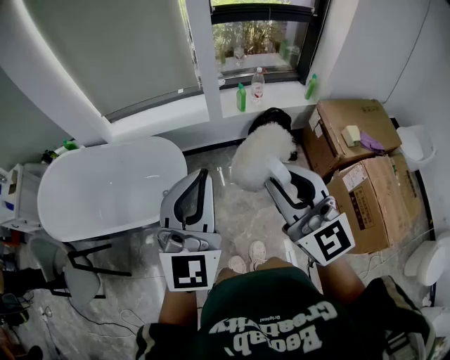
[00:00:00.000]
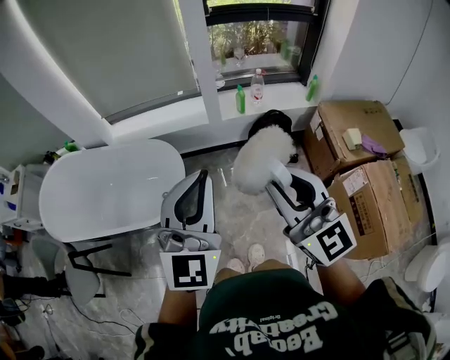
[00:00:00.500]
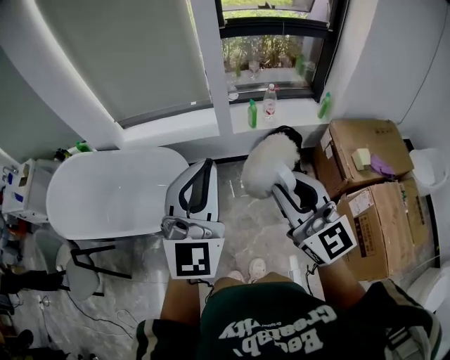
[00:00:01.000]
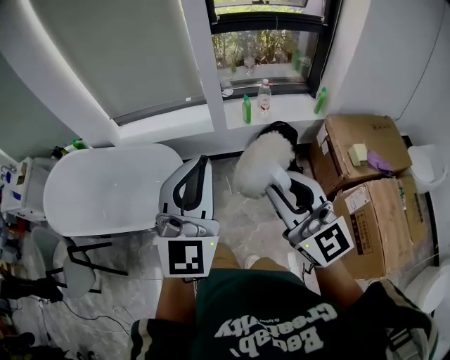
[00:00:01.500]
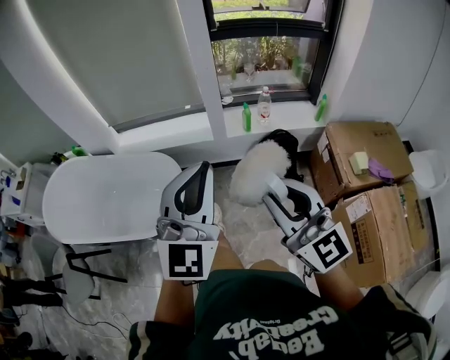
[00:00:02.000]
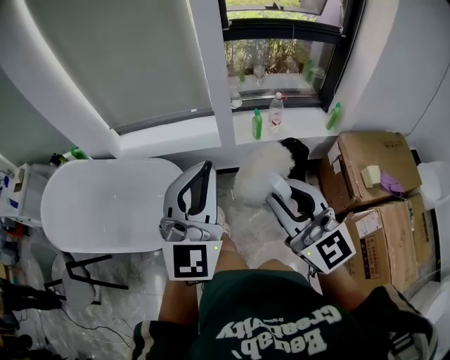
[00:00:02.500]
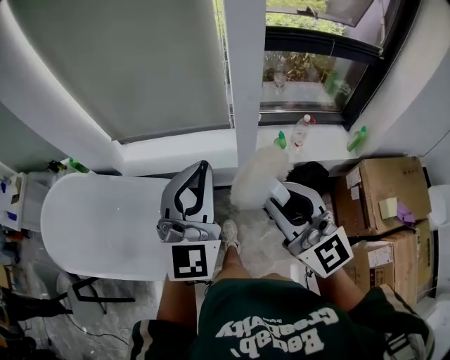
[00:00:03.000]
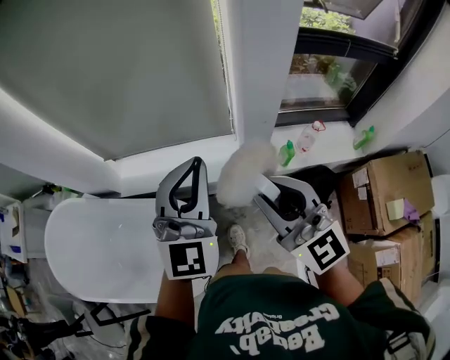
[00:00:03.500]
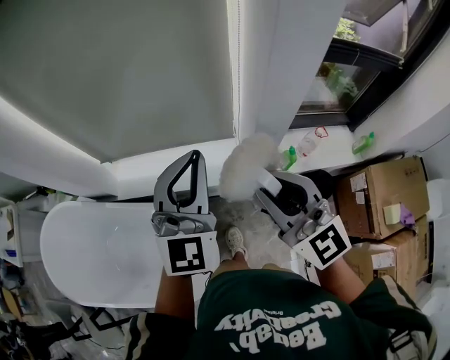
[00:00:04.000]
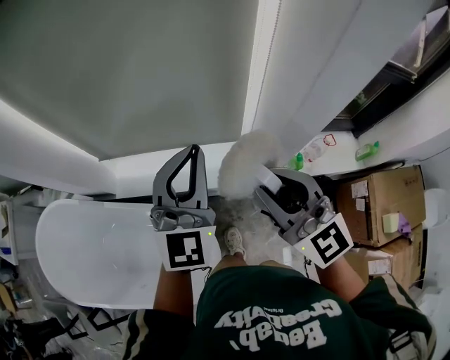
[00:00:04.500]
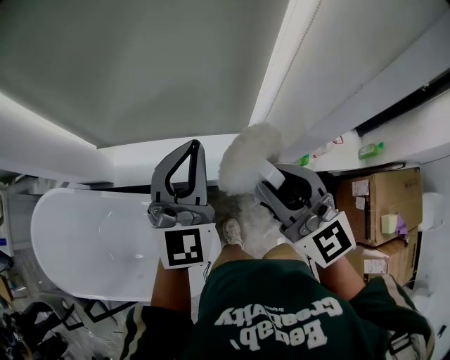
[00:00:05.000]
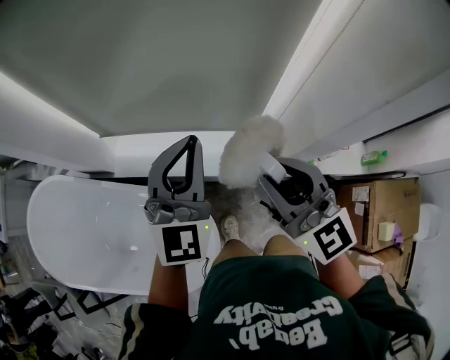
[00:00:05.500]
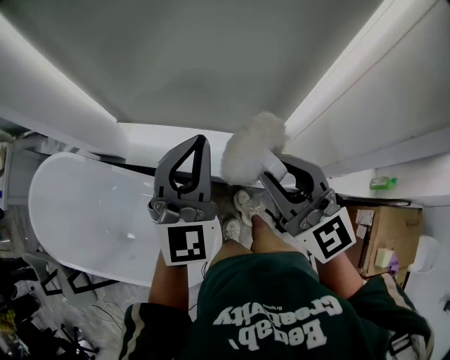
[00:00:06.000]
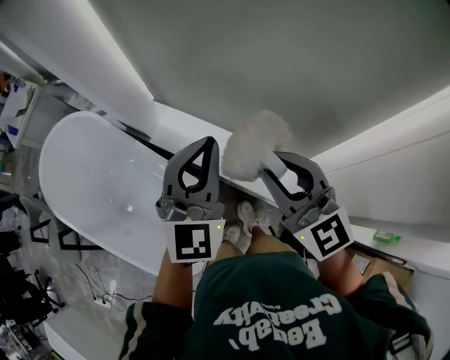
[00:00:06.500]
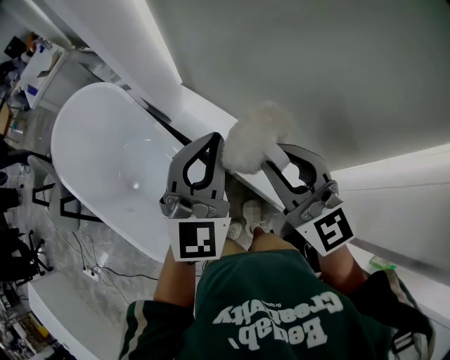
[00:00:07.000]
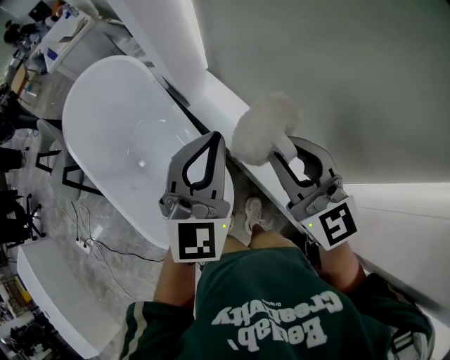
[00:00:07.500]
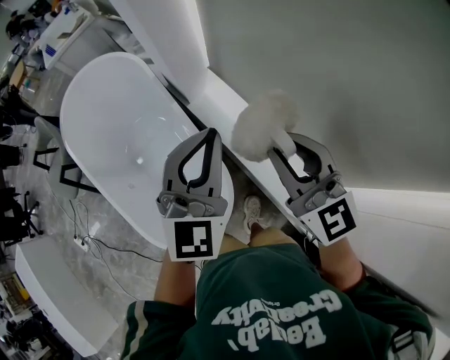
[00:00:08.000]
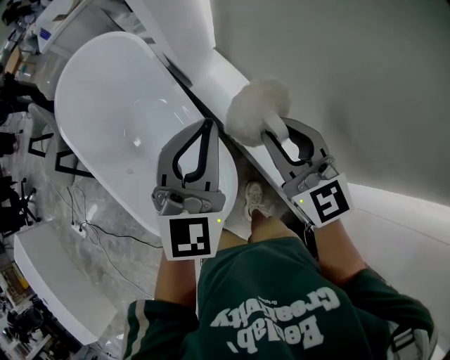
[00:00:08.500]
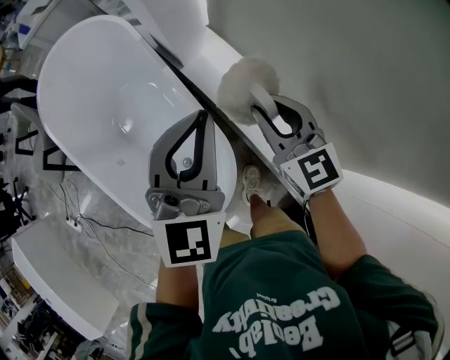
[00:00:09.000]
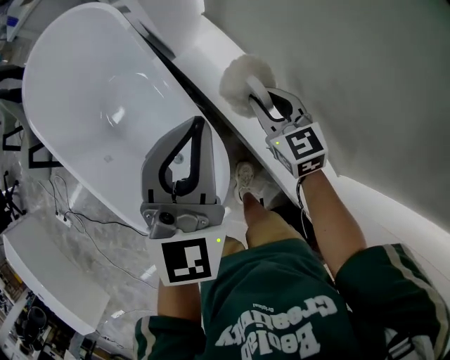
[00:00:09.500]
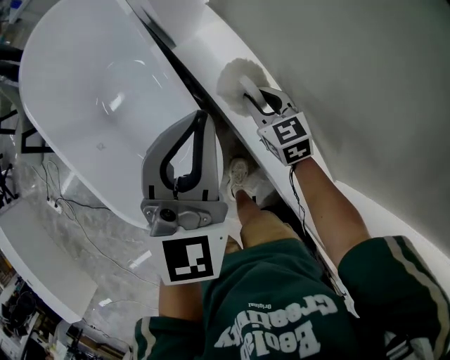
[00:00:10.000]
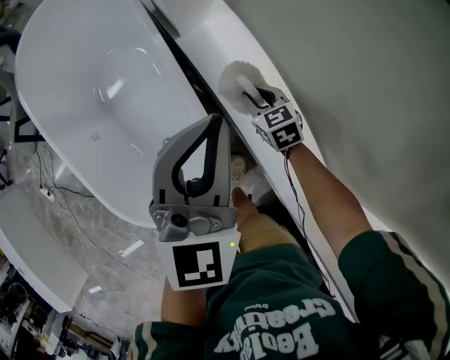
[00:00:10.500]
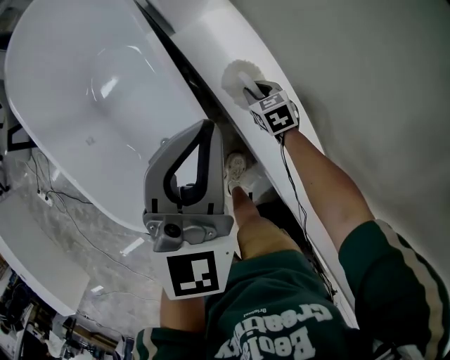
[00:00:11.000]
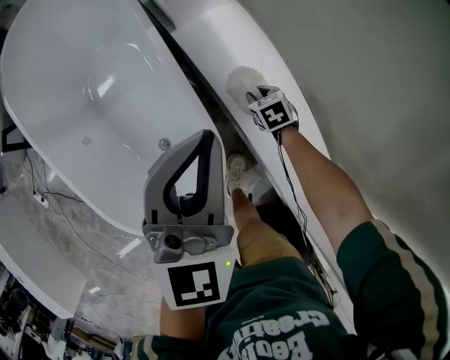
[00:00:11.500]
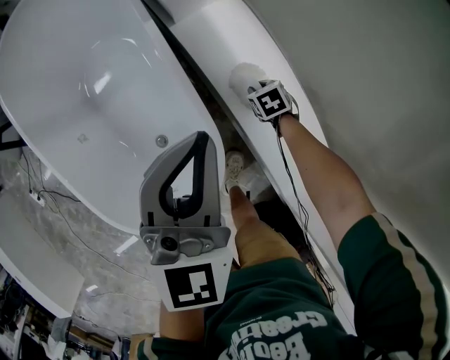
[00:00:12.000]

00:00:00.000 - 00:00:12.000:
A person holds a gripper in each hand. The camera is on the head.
00:00:00.000 - 00:00:02.000: Both grippers travel together to the right and forward, approximately 10 cm.
00:00:02.000 - 00:00:04.000: The two grippers travel together, forward, roughly 50 cm.
00:00:04.000 - 00:00:06.000: Both grippers travel together forward and to the left, about 15 cm.
00:00:06.000 - 00:00:08.000: The right gripper ends up some 20 cm from where it was, and turns by about 30 degrees; the left gripper moves approximately 15 cm, and rotates roughly 40 degrees.
00:00:08.000 - 00:00:10.000: The right gripper travels downward and forward by about 35 cm, and tilts its fingers about 30 degrees downward. The left gripper is displaced downward and forward by about 15 cm.
00:00:10.000 - 00:00:12.000: The right gripper goes about 25 cm downward, and tips its fingers downward by roughly 30 degrees. Meanwhile the left gripper heads downward, covering roughly 10 cm.

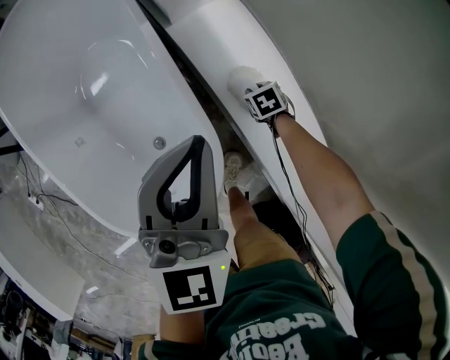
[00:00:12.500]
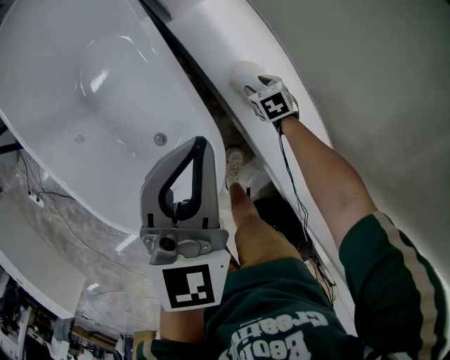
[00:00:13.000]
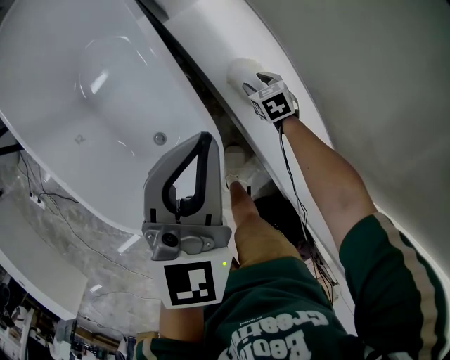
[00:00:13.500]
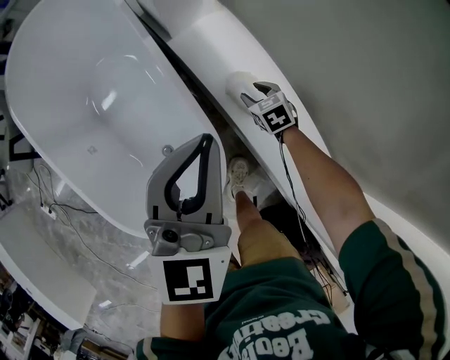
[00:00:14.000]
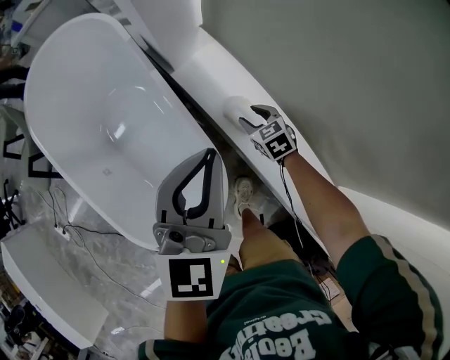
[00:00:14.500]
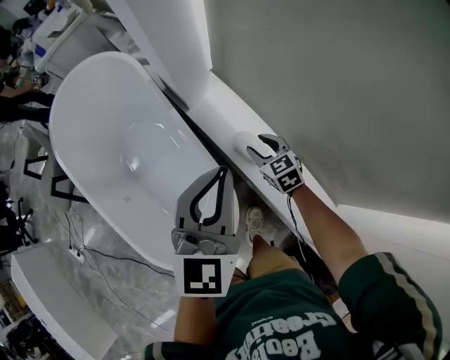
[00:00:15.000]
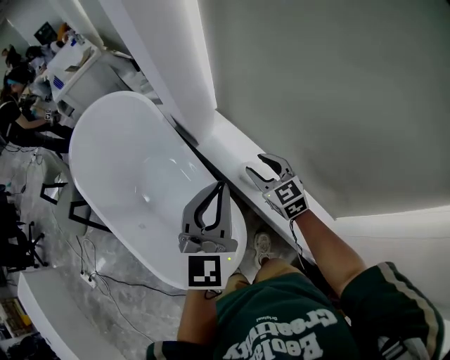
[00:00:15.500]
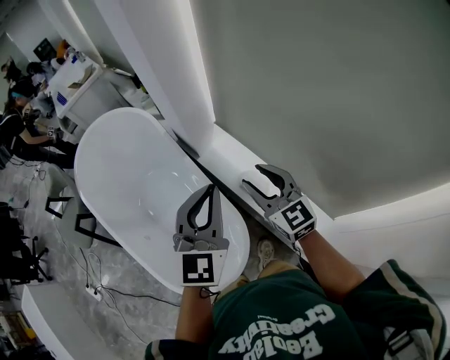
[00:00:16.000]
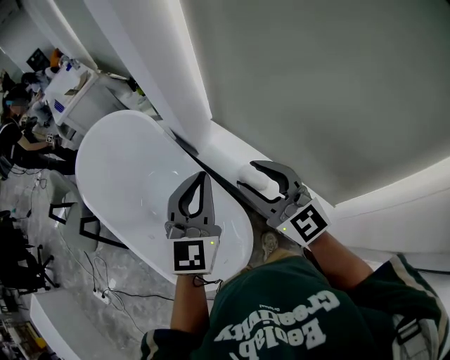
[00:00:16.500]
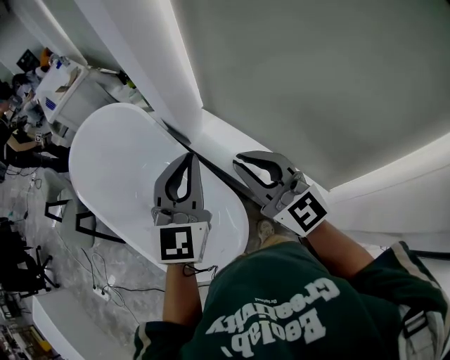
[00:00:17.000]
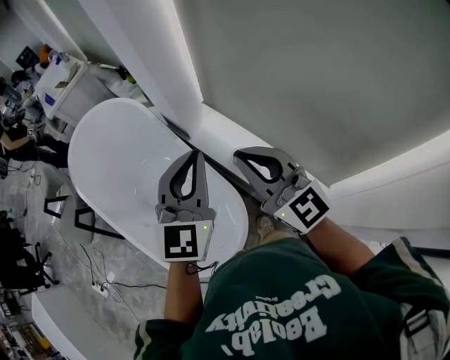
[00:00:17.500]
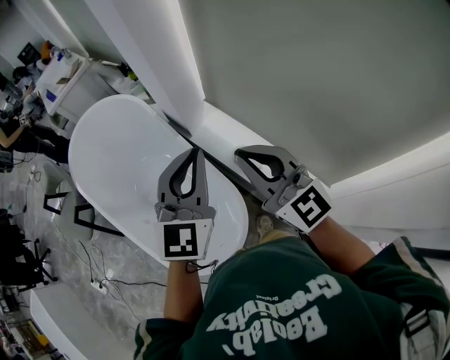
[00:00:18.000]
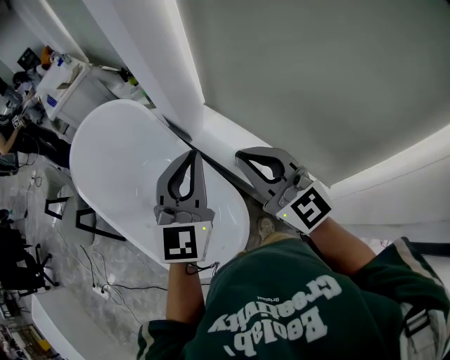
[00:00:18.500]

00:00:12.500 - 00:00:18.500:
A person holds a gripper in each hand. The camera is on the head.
00:00:12.500 - 00:00:14.500: The left gripper heads upward, covering roughly 10 cm. The right gripper shifts some 15 cm upward, turns by about 30 degrees, and opens.
00:00:14.500 - 00:00:16.500: The left gripper heads upward, covering about 15 cm, while the right gripper moves upward, approximately 50 cm, and tilts its fingers about 50 degrees upward.
00:00:16.500 - 00:00:18.500: The right gripper closes its fingers.

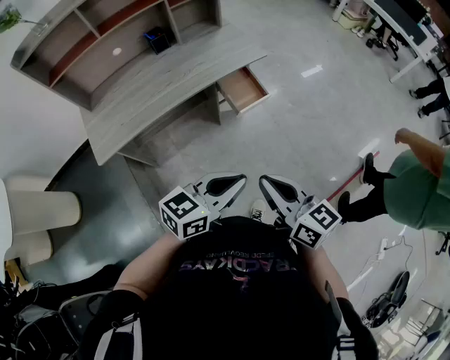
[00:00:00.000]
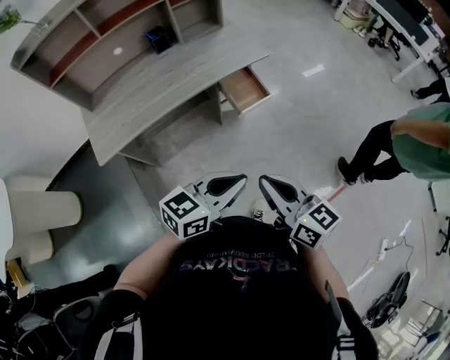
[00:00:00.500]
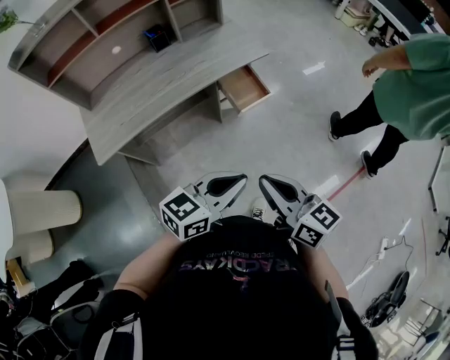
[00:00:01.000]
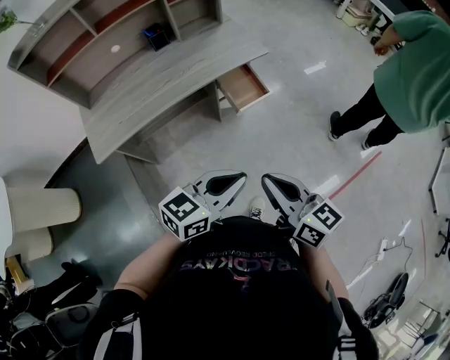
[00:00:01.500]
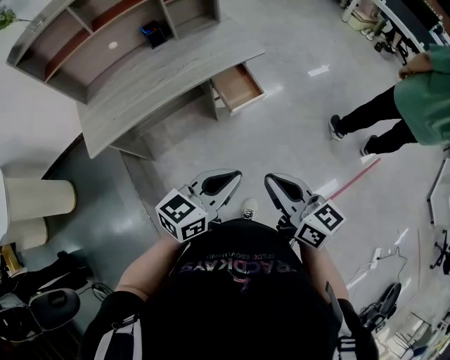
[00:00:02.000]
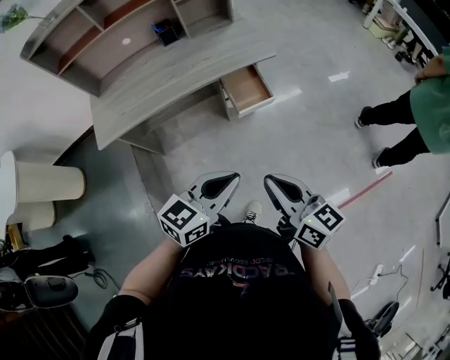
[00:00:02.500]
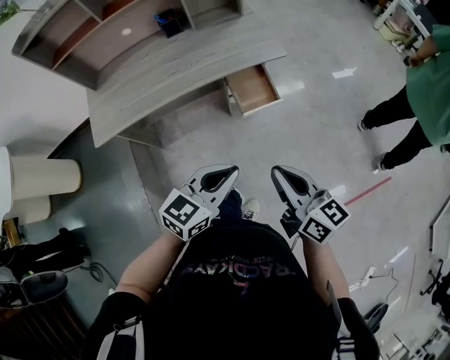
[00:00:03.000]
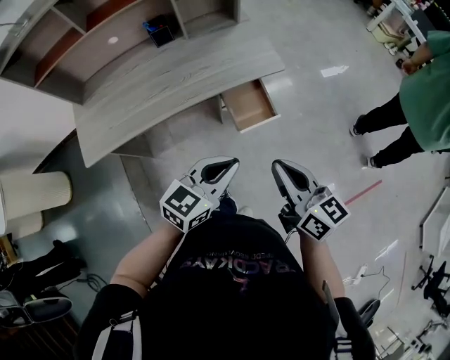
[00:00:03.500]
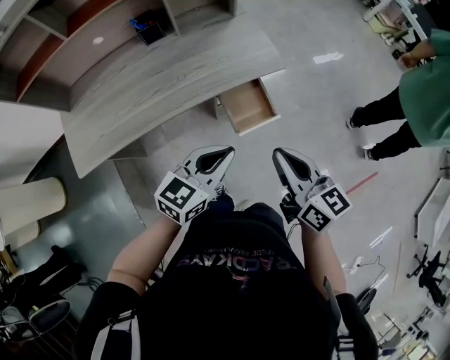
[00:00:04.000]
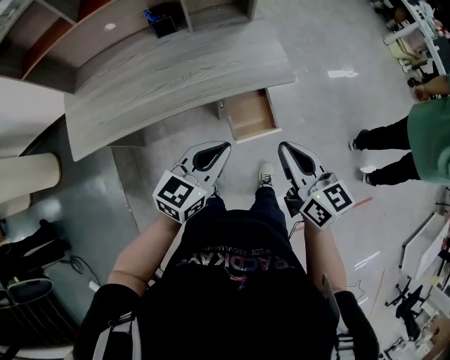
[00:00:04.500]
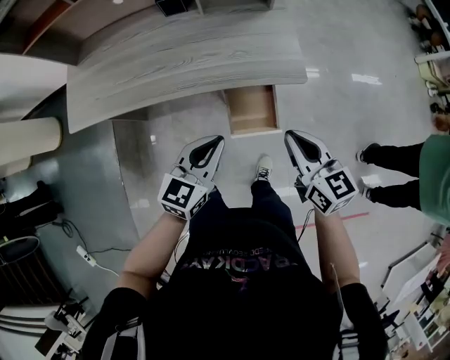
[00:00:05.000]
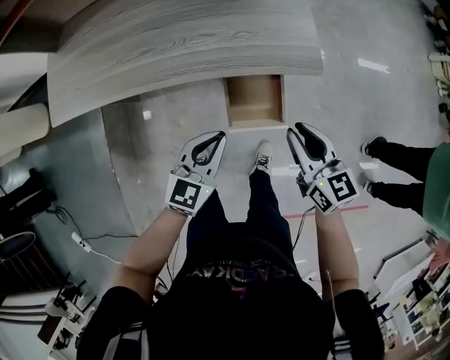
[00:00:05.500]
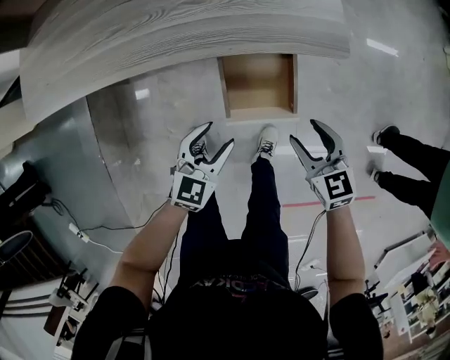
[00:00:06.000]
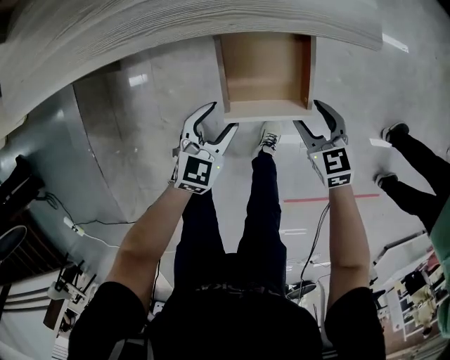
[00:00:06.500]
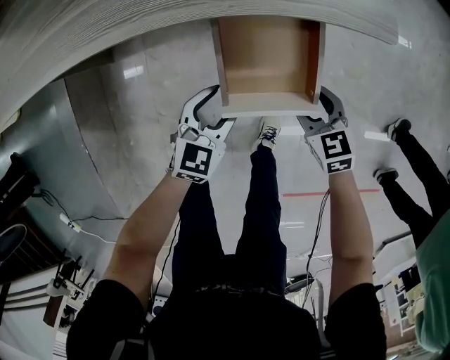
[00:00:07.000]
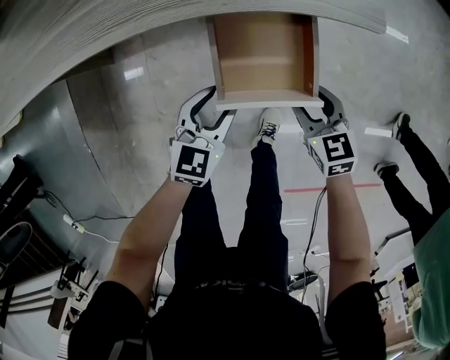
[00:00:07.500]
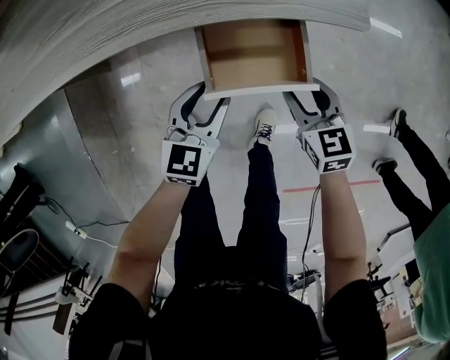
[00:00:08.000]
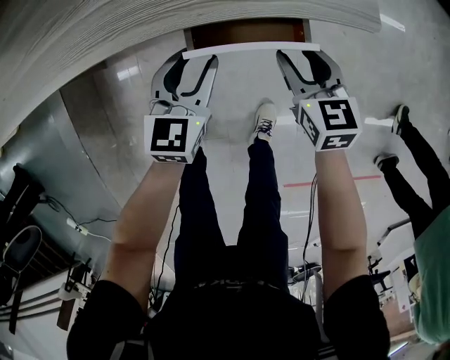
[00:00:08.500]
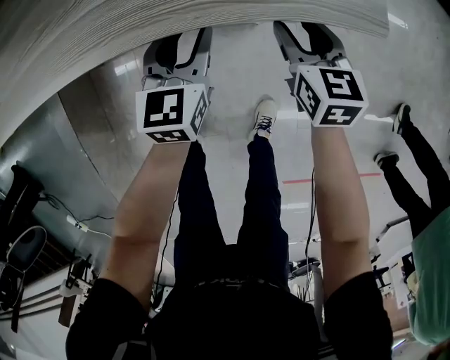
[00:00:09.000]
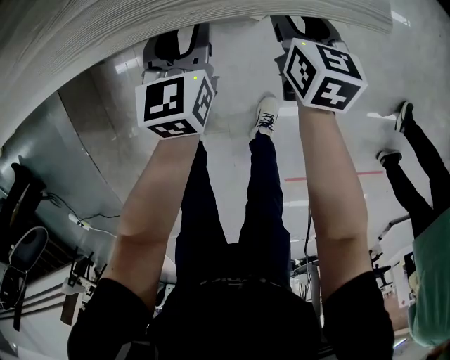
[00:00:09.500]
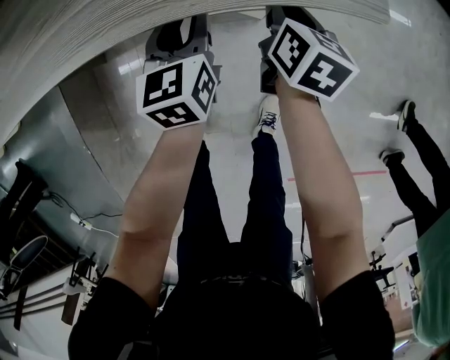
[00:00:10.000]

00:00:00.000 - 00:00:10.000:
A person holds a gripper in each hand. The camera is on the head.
00:00:00.000 - 00:00:02.000: The right gripper goes about 5 cm to the right.
00:00:02.000 - 00:00:04.000: Both grippers move forward, about 20 cm.
00:00:04.000 - 00:00:06.000: The two grippers go about 25 cm downward. The left gripper rotates roughly 30 degrees, and opens up. Meanwhile the right gripper turns by about 40 degrees, and opens its fingers.
00:00:06.000 - 00:00:08.000: The left gripper goes some 5 cm forward, and goes downward and returns, some 10 cm each way, while the right gripper heads downward and forward, covering some 10 cm.
00:00:08.000 - 00:00:10.000: The grippers both shift forward by roughly 15 cm. The left gripper swivels some 20 degrees. The right gripper changes its angle by some 40 degrees, and closes.
